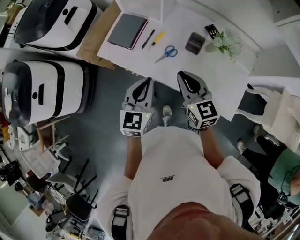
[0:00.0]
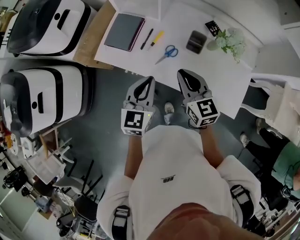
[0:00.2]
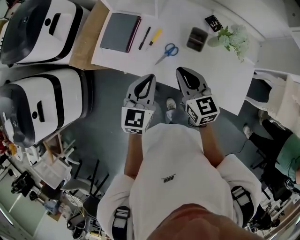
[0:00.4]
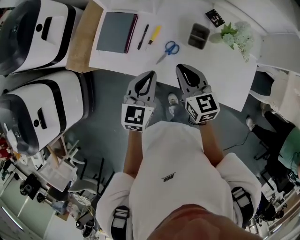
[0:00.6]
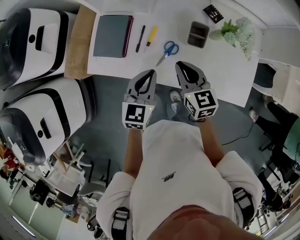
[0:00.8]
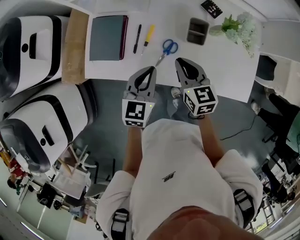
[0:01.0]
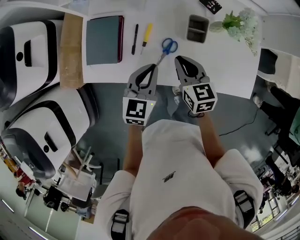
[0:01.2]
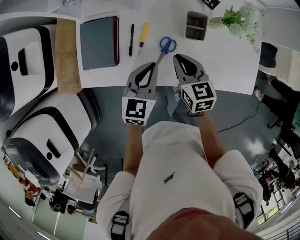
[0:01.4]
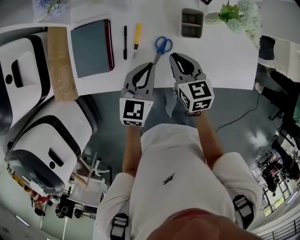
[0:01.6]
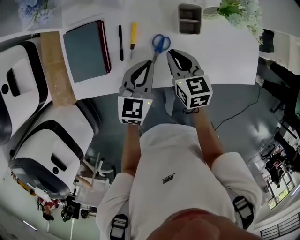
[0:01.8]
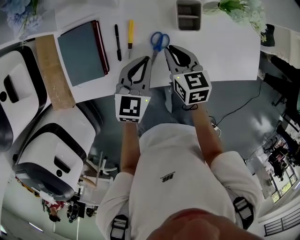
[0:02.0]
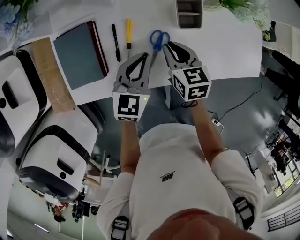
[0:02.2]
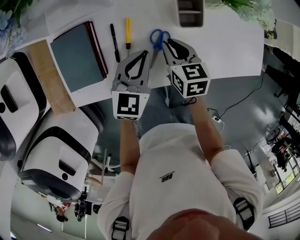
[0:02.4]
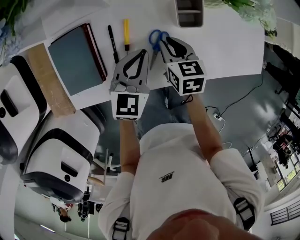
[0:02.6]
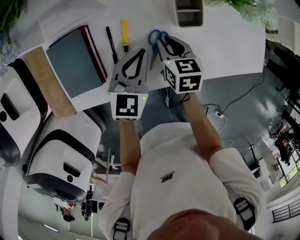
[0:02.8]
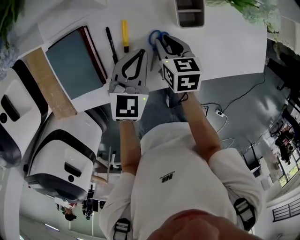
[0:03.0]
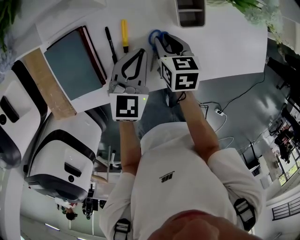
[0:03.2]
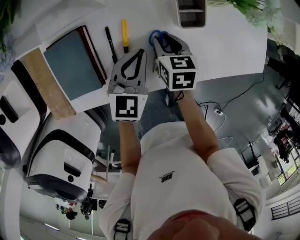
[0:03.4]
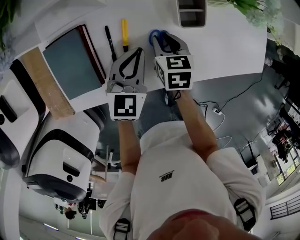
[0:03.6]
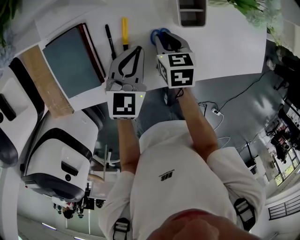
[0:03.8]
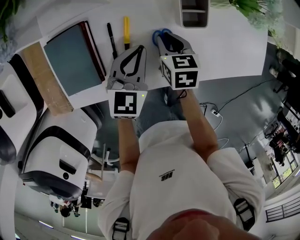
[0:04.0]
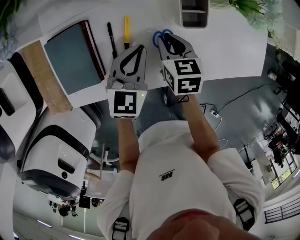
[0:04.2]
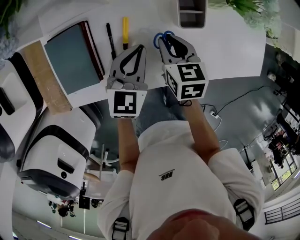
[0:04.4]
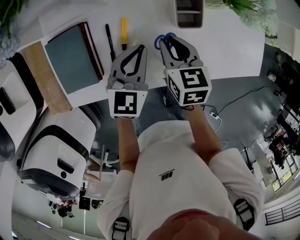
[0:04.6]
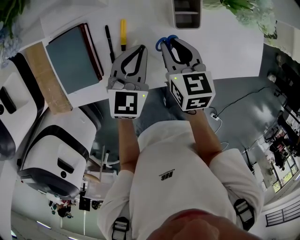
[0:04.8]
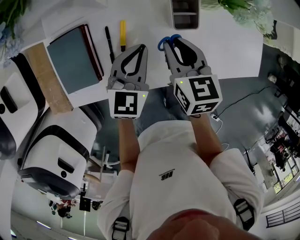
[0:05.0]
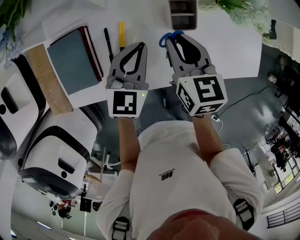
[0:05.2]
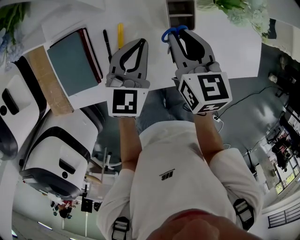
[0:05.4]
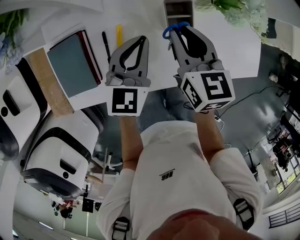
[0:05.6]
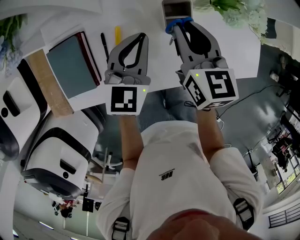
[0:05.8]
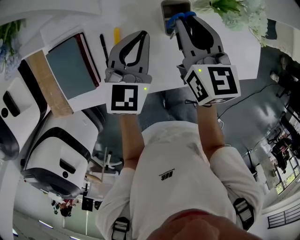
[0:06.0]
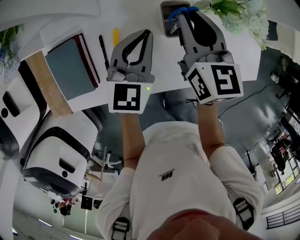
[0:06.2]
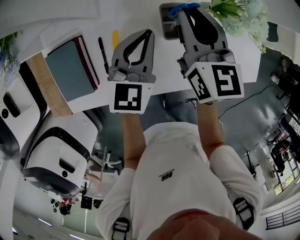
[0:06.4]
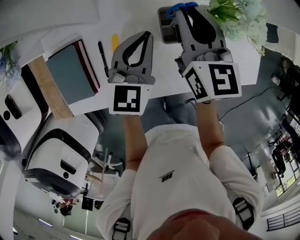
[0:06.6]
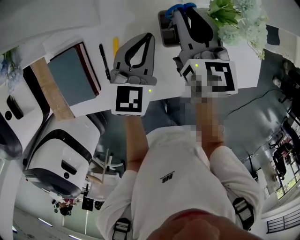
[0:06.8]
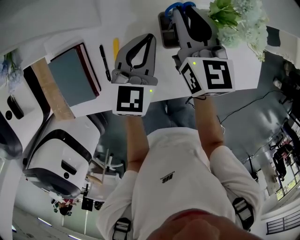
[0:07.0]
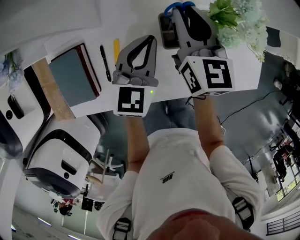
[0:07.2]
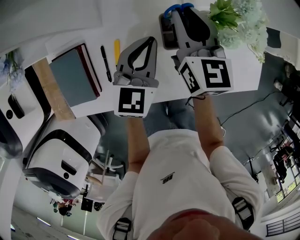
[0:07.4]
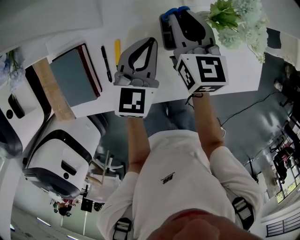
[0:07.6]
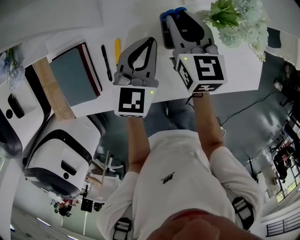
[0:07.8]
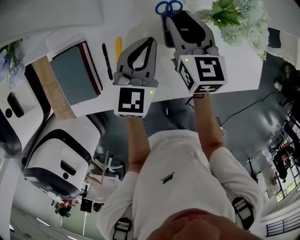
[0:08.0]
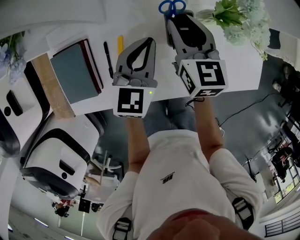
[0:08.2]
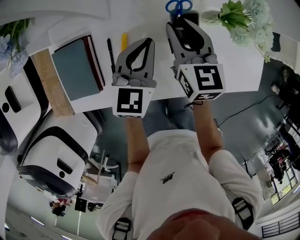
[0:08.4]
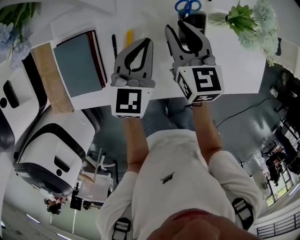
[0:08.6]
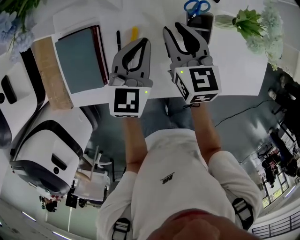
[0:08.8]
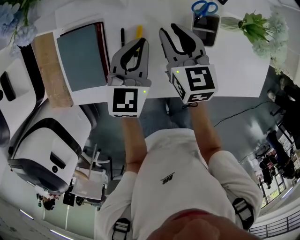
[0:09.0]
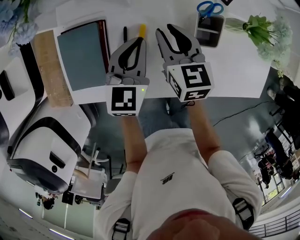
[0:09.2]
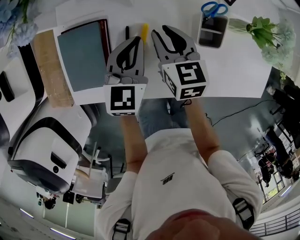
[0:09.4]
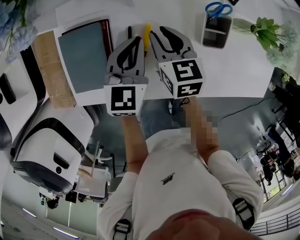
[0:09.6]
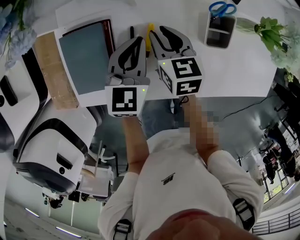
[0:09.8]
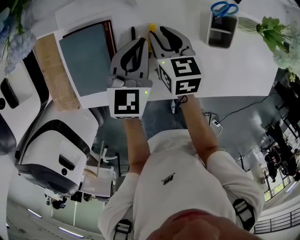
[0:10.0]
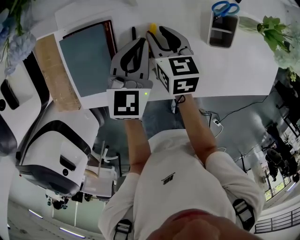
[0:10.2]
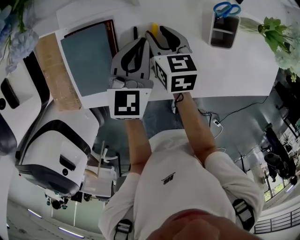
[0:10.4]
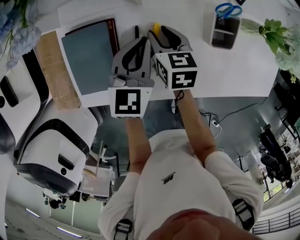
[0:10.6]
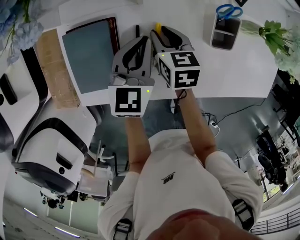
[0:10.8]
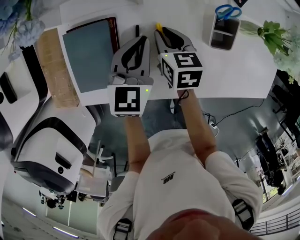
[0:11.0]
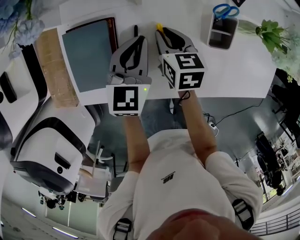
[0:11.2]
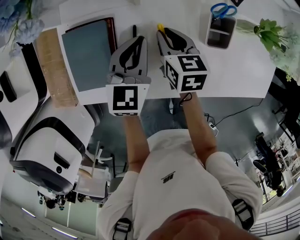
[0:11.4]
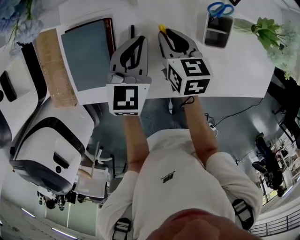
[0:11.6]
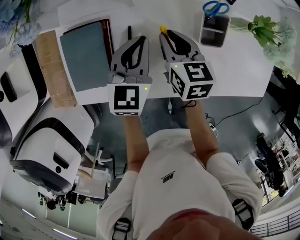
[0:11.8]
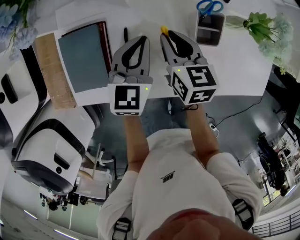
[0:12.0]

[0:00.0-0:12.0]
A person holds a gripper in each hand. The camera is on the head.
0:00.0 to 0:01.6: Both grippers move downward, about 20 cm. The right gripper changes its angle by some 40 degrees, while the left gripper rotates some 30 degrees.
0:01.6 to 0:03.0: The right gripper is displaced downward by about 10 cm, and rotates approximately 20 degrees, while the left gripper goes some 10 cm downward and forward.
0:03.0 to 0:04.4: The grippers make only small movements.
0:04.4 to 0:06.0: The right gripper shifts about 15 cm upward, forward and to the right, and turns by some 20 degrees. The left gripper travels forward and upward by about 10 cm.
0:06.0 to 0:07.6: The right gripper travels forward by approximately 5 cm.
0:07.6 to 0:09.0: The left gripper moves to the left, roughly 10 cm. Meanwhile the right gripper moves to the left and backward, roughly 15 cm.
0:09.0 to 0:10.4: The left gripper moves approximately 5 cm. Meanwhile the right gripper goes approximately 10 cm downward and to the left.
0:10.4 to 0:12.0: The right gripper heads to the right and upward, covering approximately 10 cm, and closes up.

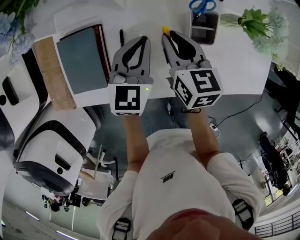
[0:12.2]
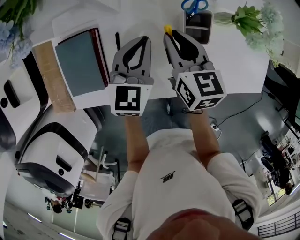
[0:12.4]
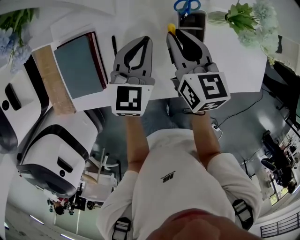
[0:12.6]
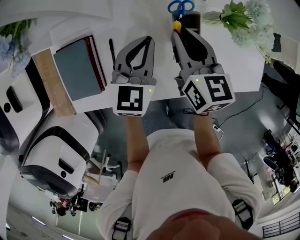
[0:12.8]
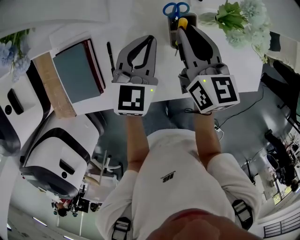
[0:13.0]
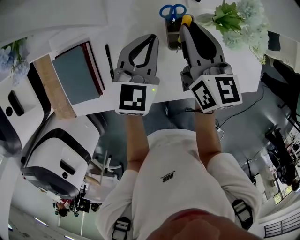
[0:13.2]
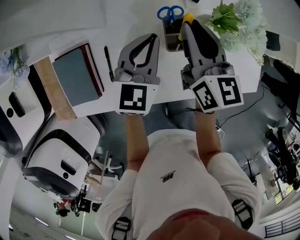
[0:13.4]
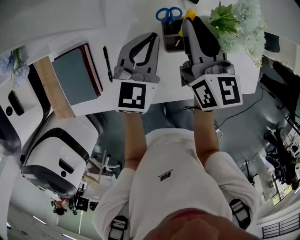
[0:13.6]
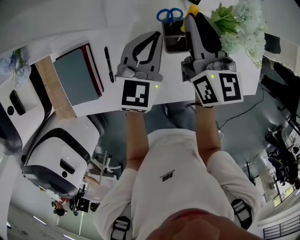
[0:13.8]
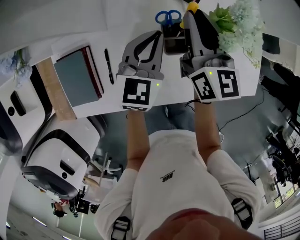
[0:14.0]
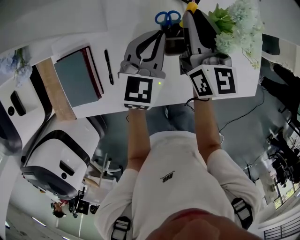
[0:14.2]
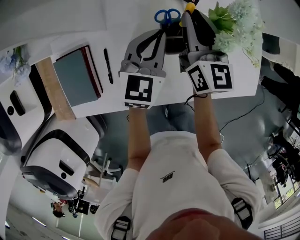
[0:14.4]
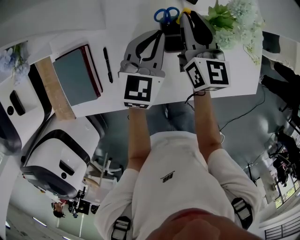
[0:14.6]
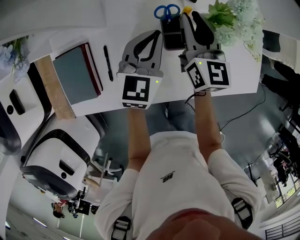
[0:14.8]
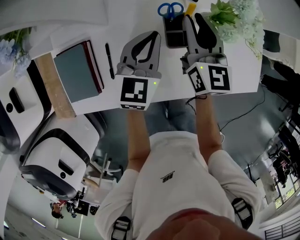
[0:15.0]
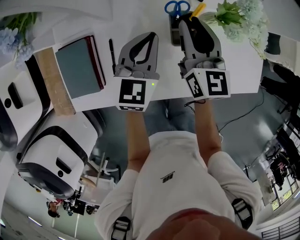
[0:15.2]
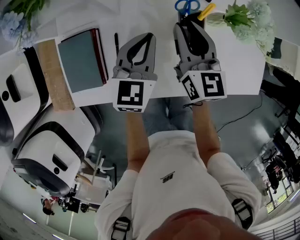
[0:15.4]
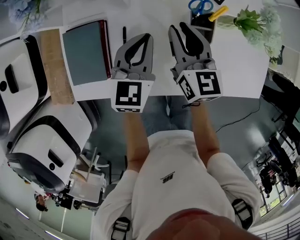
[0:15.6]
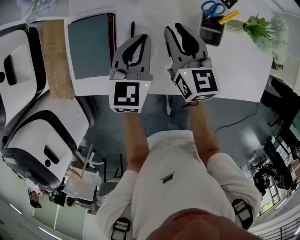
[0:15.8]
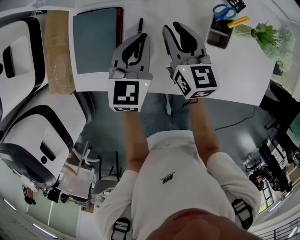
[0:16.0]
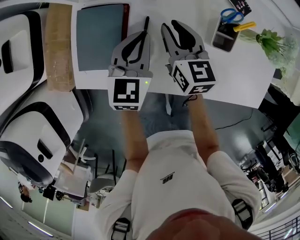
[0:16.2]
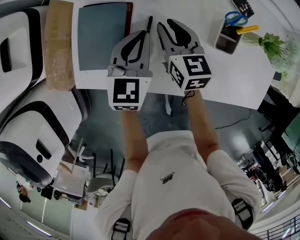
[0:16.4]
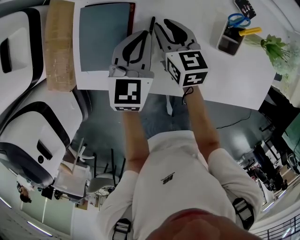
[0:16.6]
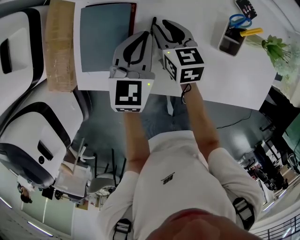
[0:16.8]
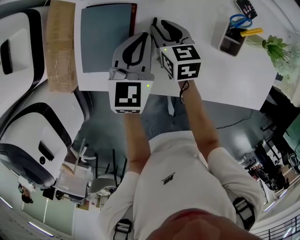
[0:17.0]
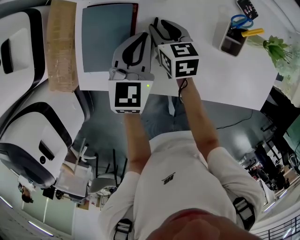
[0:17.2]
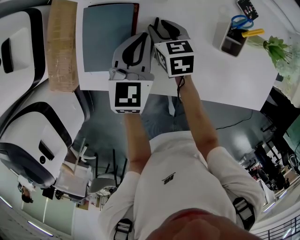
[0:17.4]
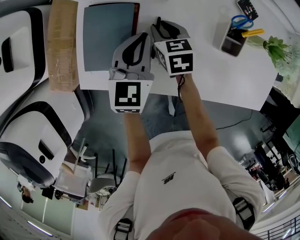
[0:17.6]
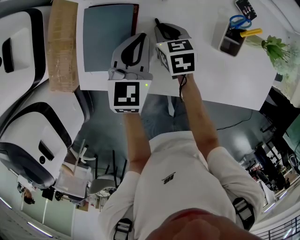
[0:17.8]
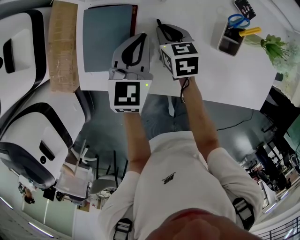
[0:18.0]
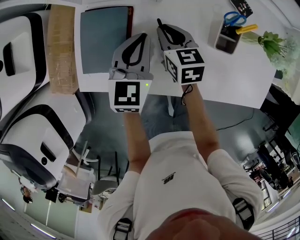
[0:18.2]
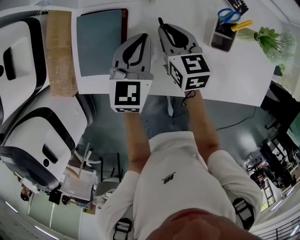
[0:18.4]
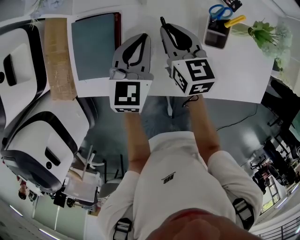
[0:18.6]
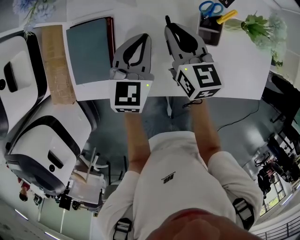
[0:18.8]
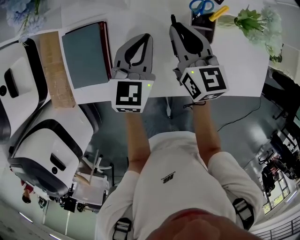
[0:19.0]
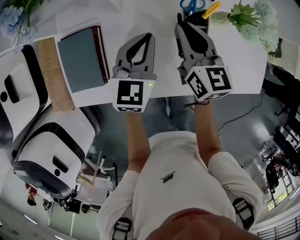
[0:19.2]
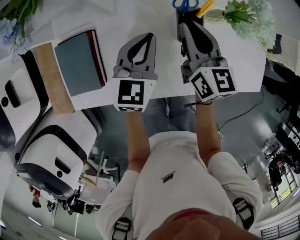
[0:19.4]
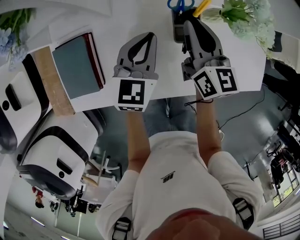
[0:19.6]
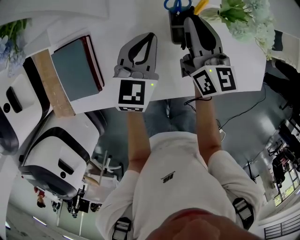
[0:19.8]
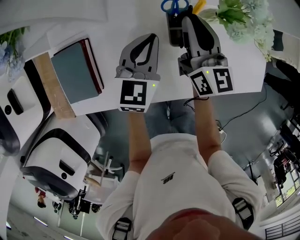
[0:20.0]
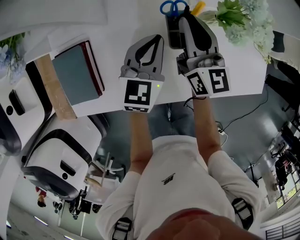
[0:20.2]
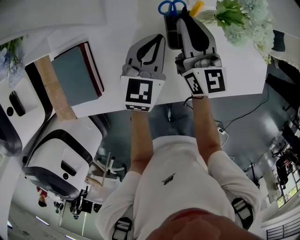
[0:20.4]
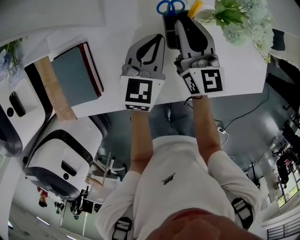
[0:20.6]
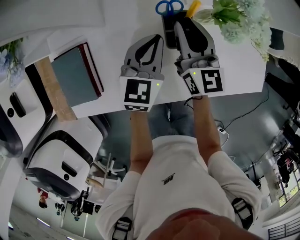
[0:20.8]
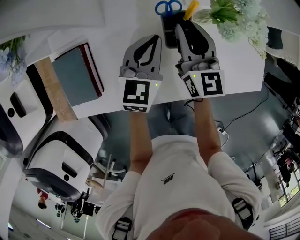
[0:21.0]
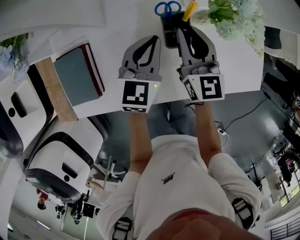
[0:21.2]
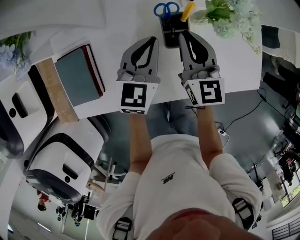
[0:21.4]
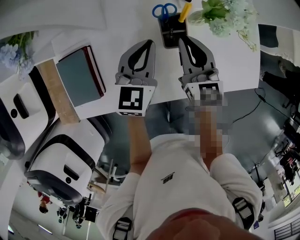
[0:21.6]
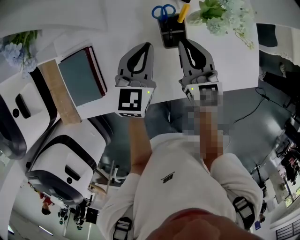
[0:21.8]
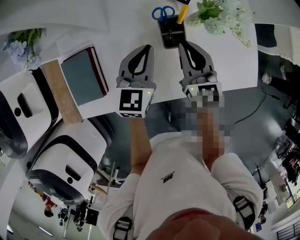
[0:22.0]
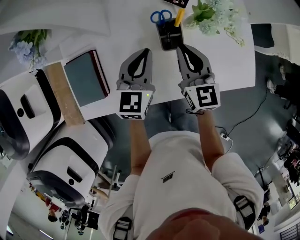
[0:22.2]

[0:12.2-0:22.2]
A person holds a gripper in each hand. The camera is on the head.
0:12.2 to 0:13.6: The right gripper is displaced to the right, upward and forward by approximately 20 cm, and changes its angle by roughly 20 degrees. The left gripper is displaced to the right by approximately 10 cm.
0:13.6 to 0:15.0: The grippers move only a little.
0:15.0 to 0:16.4: The two grippers go approximately 20 cm to the left. The right gripper turns by approximately 30 degrees.
0:16.4 to 0:18.0: The right gripper moves downward, roughly 5 cm.
0:18.0 to 0:19.4: The left gripper goes about 15 cm to the right. The right gripper goes about 25 cm to the right and upward, and tips its fingers upward by about 30 degrees.
0:19.4 to 0:20.8: The left gripper is displaced to the right by roughly 5 cm.
0:20.8 to 0:22.2: The right gripper goes roughly 5 cm backward. Meanwhile the left gripper heads upward, covering approximately 5 cm.

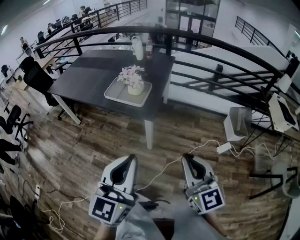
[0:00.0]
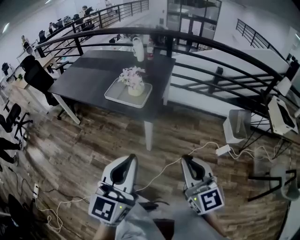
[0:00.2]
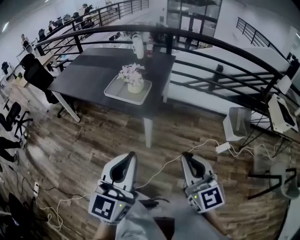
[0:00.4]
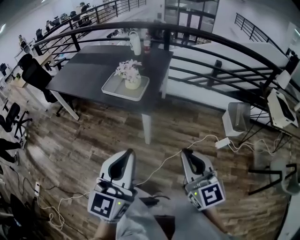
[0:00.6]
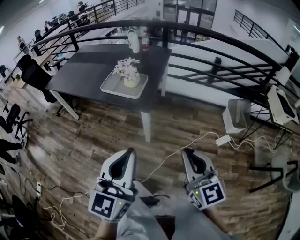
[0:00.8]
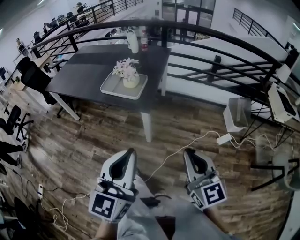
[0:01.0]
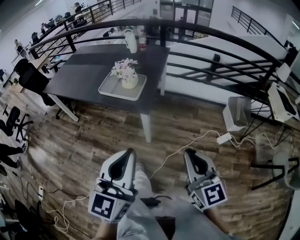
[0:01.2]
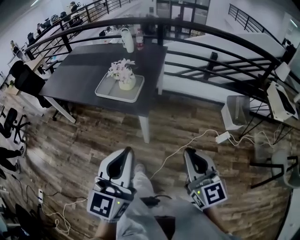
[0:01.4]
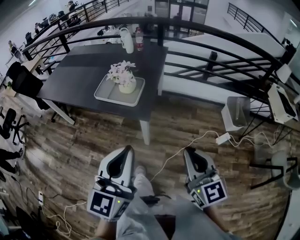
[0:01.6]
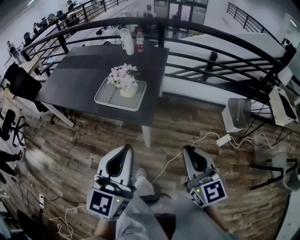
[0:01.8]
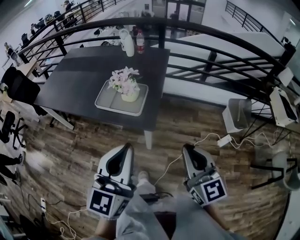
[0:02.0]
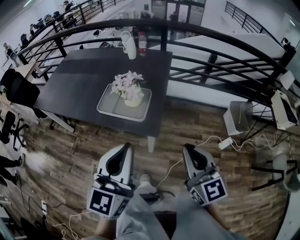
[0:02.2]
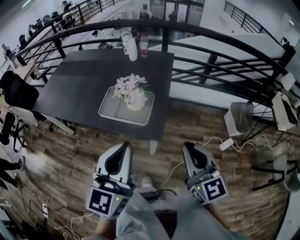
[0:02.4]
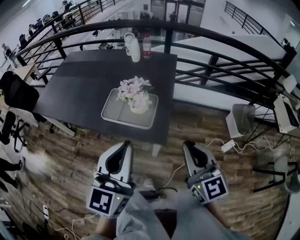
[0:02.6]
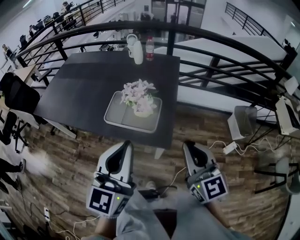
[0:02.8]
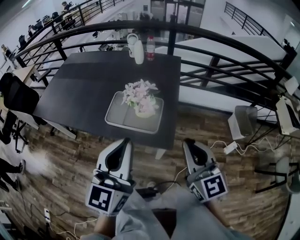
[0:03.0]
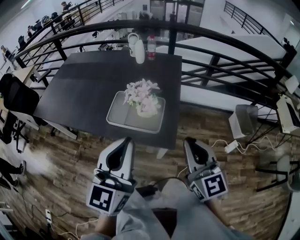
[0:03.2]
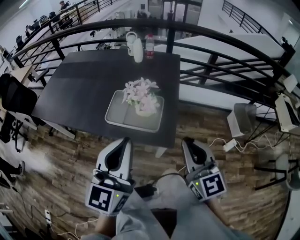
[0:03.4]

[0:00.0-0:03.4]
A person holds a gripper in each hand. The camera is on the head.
0:00.0 to 0:01.6: The two grippers go about 5 cm forward.
0:01.6 to 0:03.4: The grippers both shift forward and to the left by approximately 25 cm.
